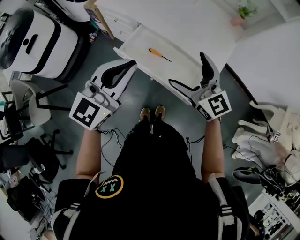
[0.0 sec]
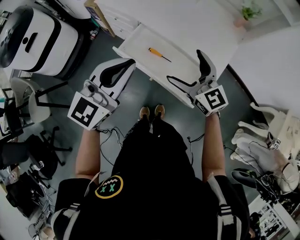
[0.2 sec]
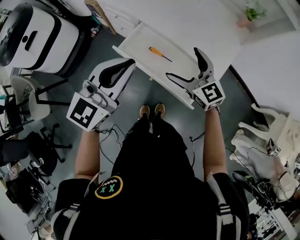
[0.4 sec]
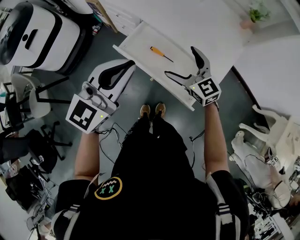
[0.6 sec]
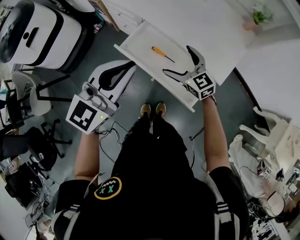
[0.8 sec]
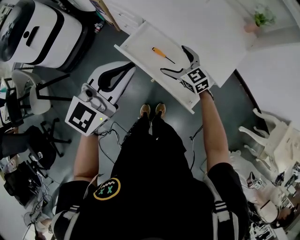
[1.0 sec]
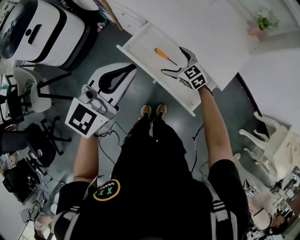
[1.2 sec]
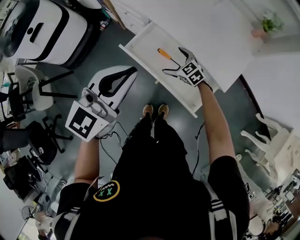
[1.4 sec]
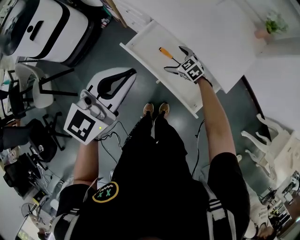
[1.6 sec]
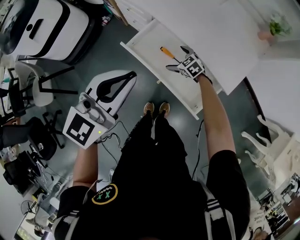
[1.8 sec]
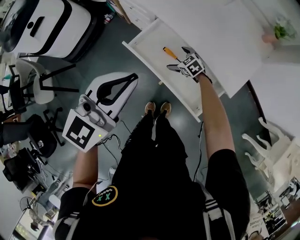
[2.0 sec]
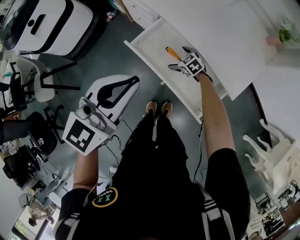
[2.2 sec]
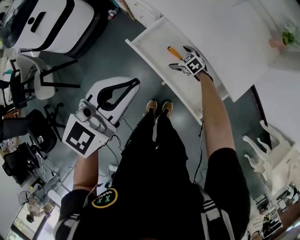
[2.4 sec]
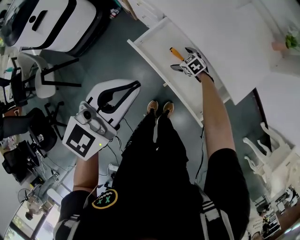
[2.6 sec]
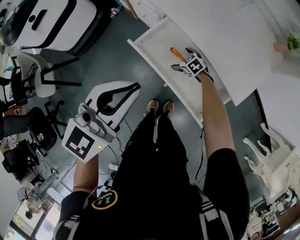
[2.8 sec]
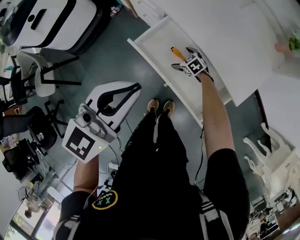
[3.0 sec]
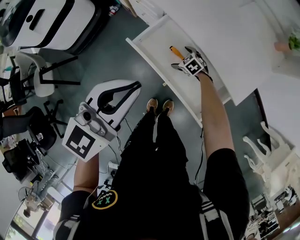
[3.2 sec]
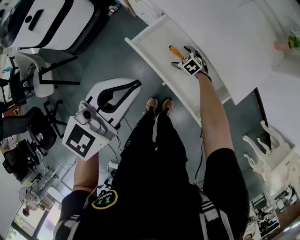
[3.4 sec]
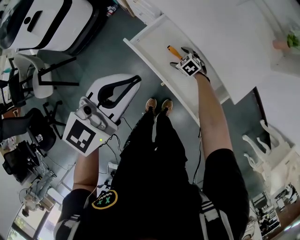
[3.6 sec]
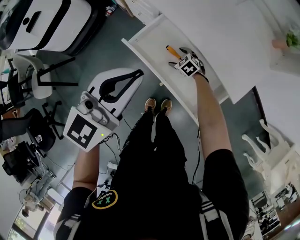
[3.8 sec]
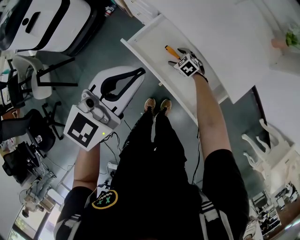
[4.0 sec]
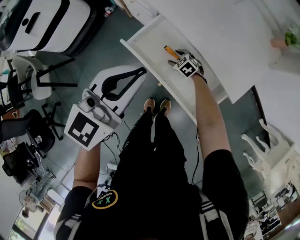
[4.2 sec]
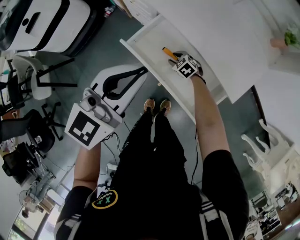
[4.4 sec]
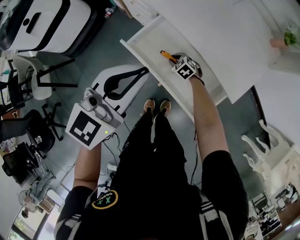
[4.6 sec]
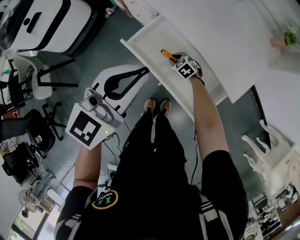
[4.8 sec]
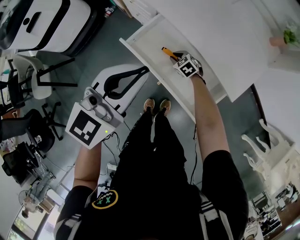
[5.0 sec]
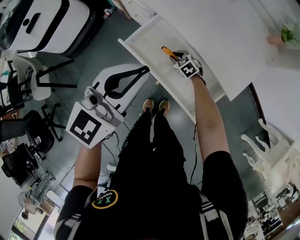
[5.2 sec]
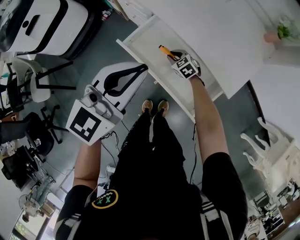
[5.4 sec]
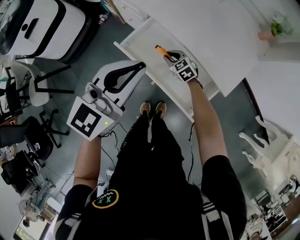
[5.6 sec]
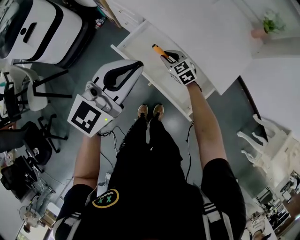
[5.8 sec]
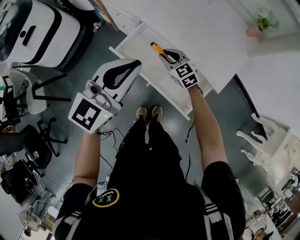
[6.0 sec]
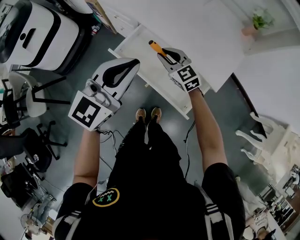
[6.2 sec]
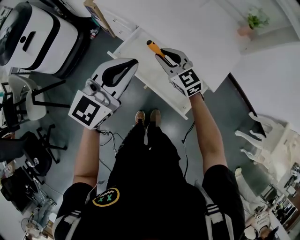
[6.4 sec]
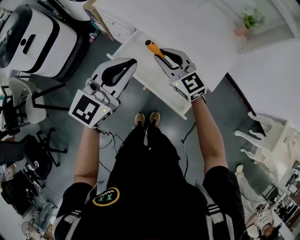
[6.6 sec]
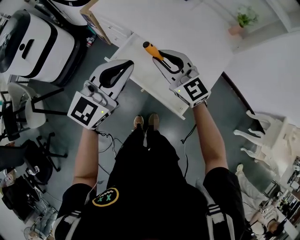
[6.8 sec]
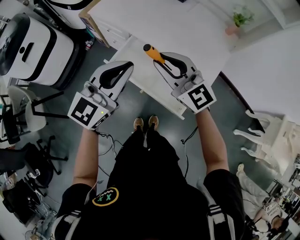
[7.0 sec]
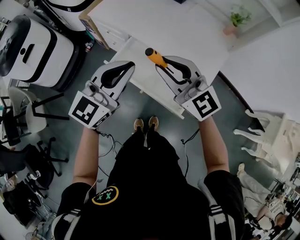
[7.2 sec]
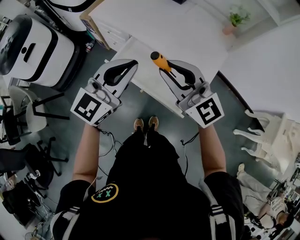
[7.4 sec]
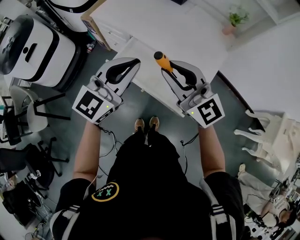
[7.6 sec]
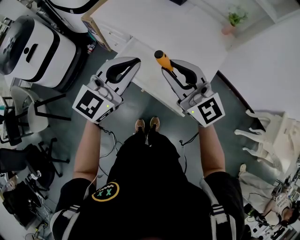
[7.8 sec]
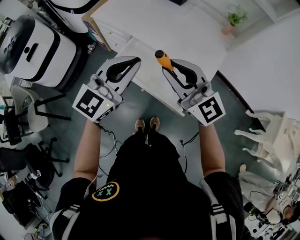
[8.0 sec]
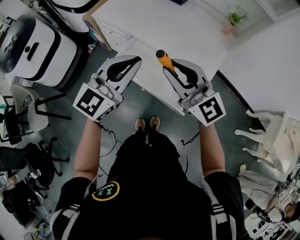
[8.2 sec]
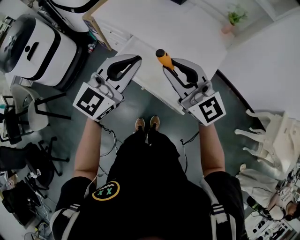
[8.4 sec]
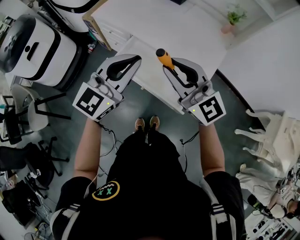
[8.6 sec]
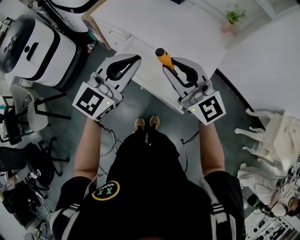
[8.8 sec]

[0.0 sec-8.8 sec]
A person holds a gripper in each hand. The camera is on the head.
0.0 sec to 1.4 sec: The left gripper shifts by about 5 cm. The right gripper moves downward and forward, some 35 cm, and tips its fingers downward by some 30 degrees.
1.4 sec to 3.0 sec: The right gripper heads downward, covering approximately 15 cm.
3.0 sec to 4.4 sec: The right gripper closes.
4.4 sec to 5.8 sec: The right gripper moves upward, about 15 cm, and rotates roughly 20 degrees.
5.8 sec to 7.4 sec: The right gripper heads upward, covering about 40 cm, and points its fingers some 40 degrees further upward. Meanwhile the left gripper moves upward, some 5 cm.
7.4 sec to 8.8 sec: The grippers stay close to where they were, moving slightly.

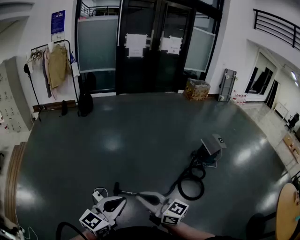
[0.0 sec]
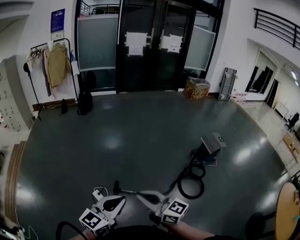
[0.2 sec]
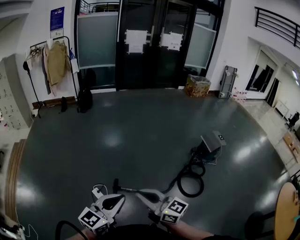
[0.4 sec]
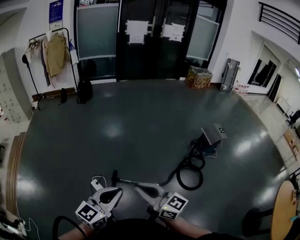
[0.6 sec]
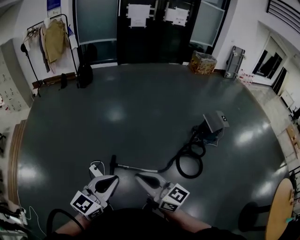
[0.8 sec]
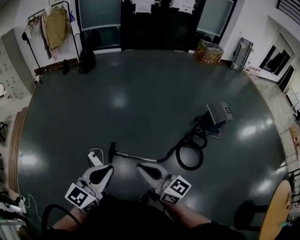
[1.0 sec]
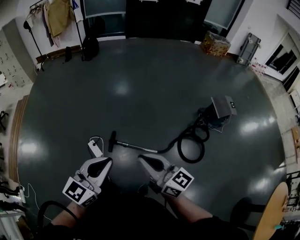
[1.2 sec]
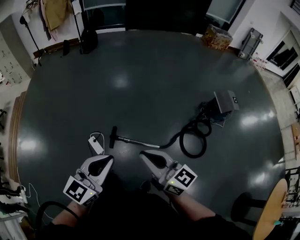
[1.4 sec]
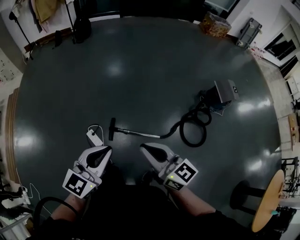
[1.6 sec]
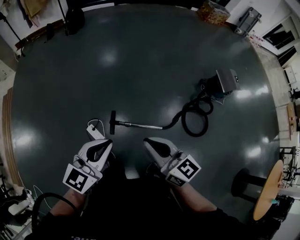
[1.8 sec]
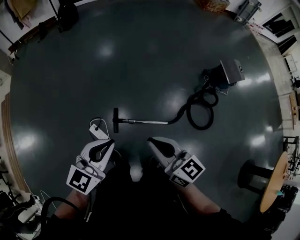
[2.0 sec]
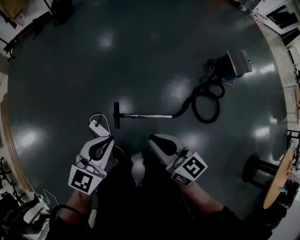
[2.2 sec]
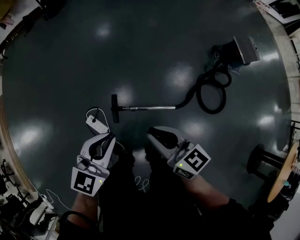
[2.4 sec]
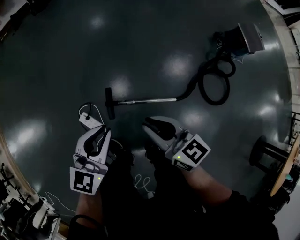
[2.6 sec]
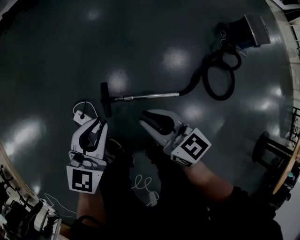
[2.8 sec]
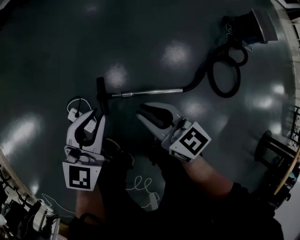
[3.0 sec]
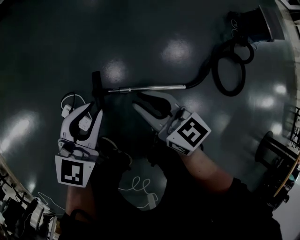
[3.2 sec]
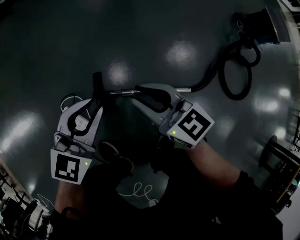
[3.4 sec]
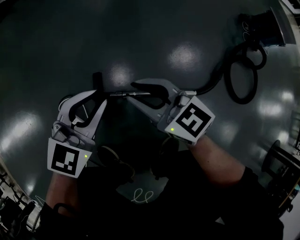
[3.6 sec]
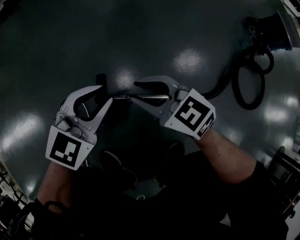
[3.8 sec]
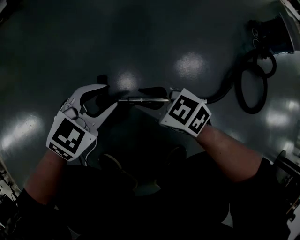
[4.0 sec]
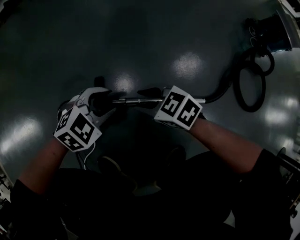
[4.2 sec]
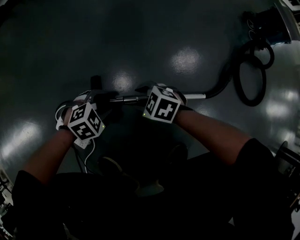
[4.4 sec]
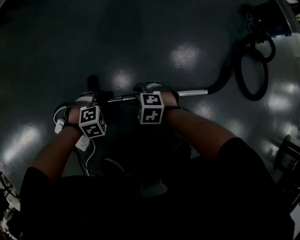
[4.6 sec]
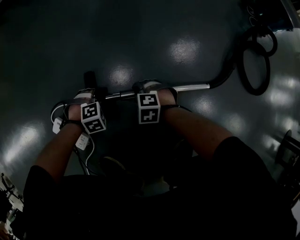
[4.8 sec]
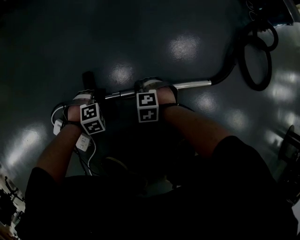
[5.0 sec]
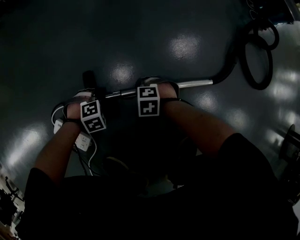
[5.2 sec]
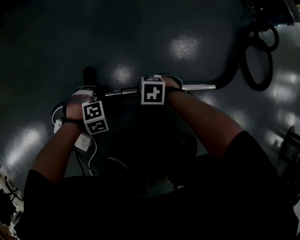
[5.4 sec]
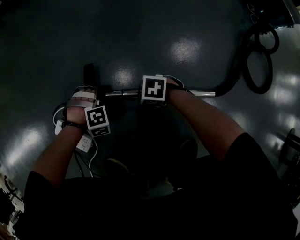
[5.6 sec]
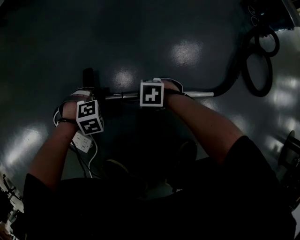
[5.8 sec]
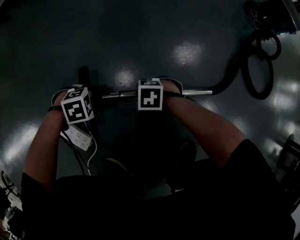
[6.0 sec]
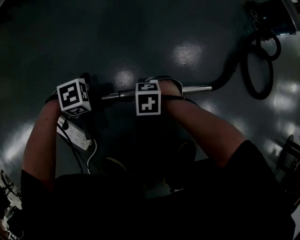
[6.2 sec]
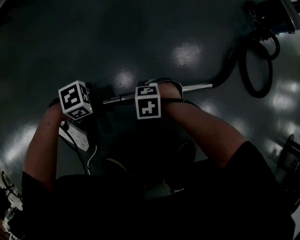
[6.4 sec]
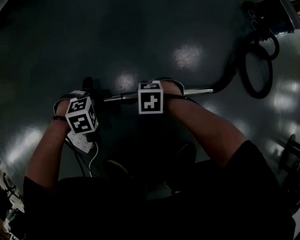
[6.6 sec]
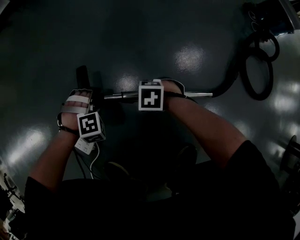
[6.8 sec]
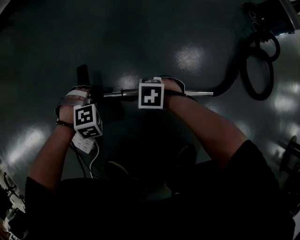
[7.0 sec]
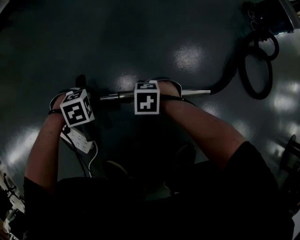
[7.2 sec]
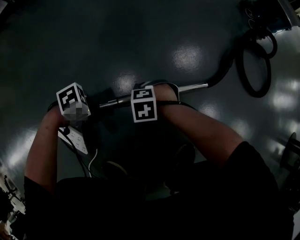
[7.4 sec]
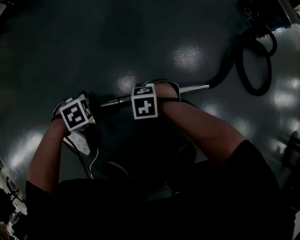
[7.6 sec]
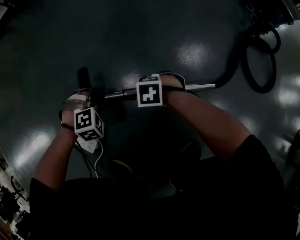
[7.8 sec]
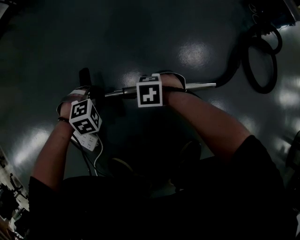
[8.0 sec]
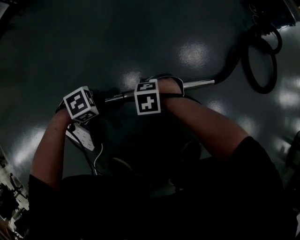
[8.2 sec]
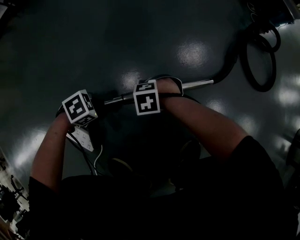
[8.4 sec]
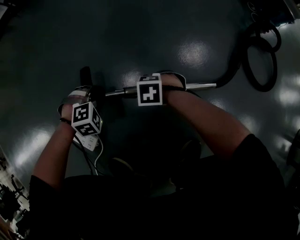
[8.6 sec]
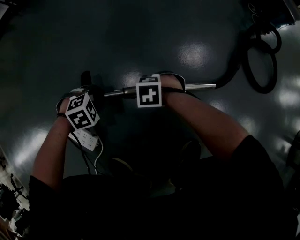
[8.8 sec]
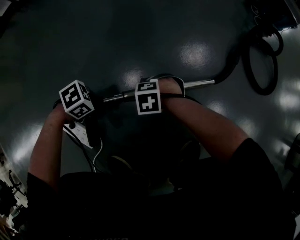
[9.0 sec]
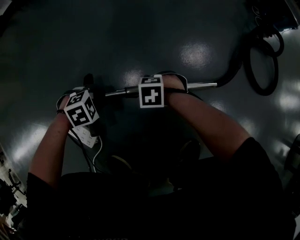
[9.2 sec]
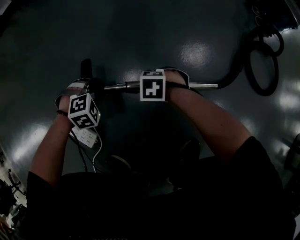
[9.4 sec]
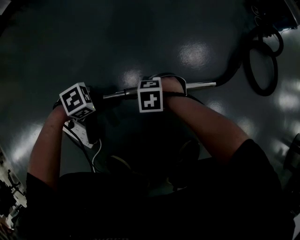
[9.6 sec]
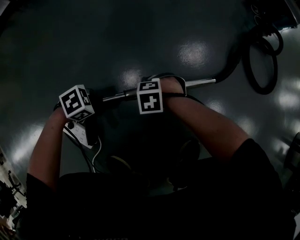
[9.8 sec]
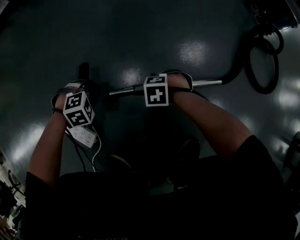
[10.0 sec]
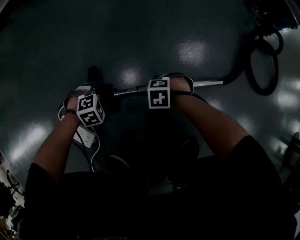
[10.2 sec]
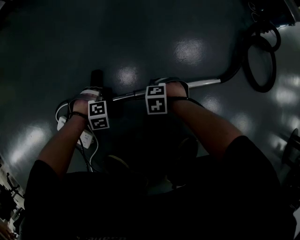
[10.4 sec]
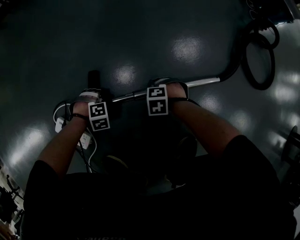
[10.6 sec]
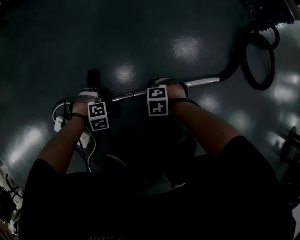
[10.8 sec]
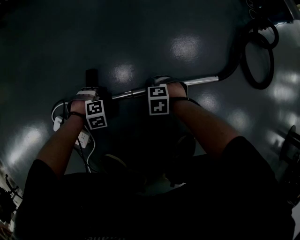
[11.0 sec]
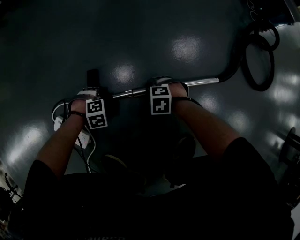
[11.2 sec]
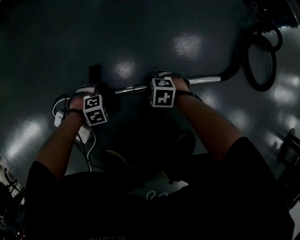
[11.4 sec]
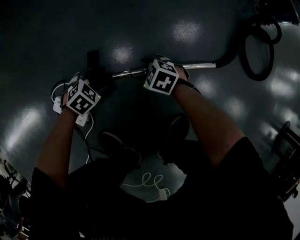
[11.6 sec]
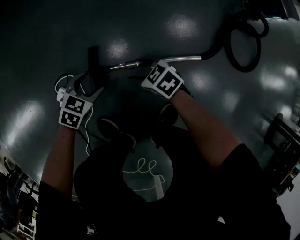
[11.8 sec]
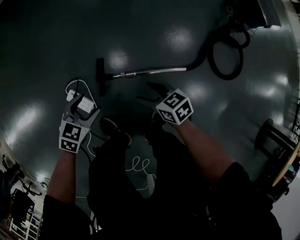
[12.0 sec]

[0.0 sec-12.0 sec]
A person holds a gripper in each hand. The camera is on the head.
0.0 sec to 1.6 sec: The left gripper is displaced forward by roughly 10 cm. The right gripper is displaced forward and downward by approximately 10 cm.
1.6 sec to 3.0 sec: The left gripper moves downward and forward, about 50 cm; the right gripper is displaced downward by some 50 cm.
3.0 sec to 4.4 sec: The grippers both shift downward by about 40 cm. The right gripper tilts its fingers roughly 40 degrees downward, and opens its fingers; the left gripper angles its fingers downward, by some 50 degrees, and opens.
4.4 sec to 6.0 sec: The two grippers go approximately 5 cm downward. The left gripper turns by some 20 degrees.
9.0 sec to 10.4 sec: The left gripper moves downward, approximately 15 cm, and rotates roughly 50 degrees; the right gripper heads downward, covering some 10 cm.
10.4 sec to 12.0 sec: Both grippers travel together upward, some 40 cm. The right gripper angles its fingers upward, by some 40 degrees, and opens its fingers. Meanwhile the left gripper twists some 60 degrees counterclockwise, seen from behind, and opens up.

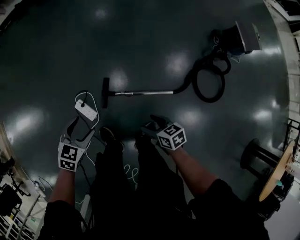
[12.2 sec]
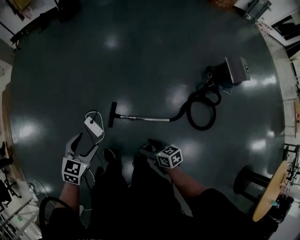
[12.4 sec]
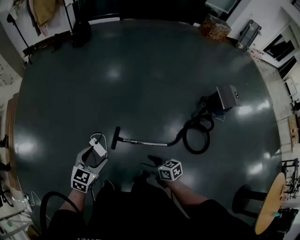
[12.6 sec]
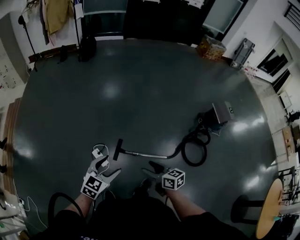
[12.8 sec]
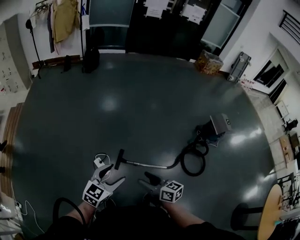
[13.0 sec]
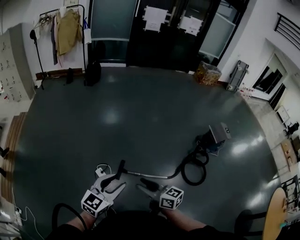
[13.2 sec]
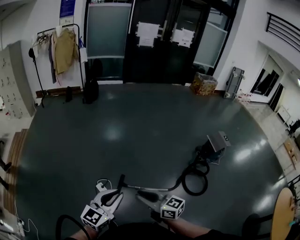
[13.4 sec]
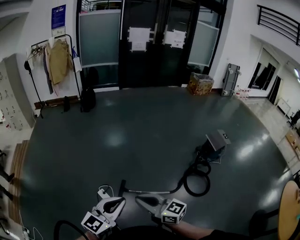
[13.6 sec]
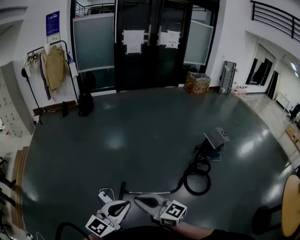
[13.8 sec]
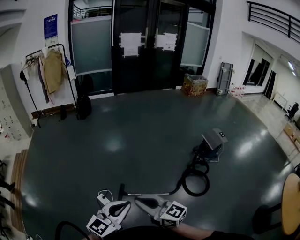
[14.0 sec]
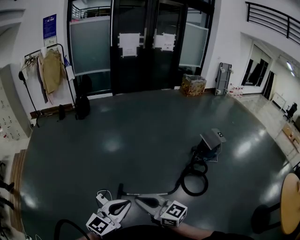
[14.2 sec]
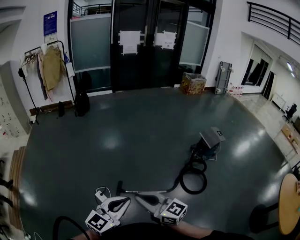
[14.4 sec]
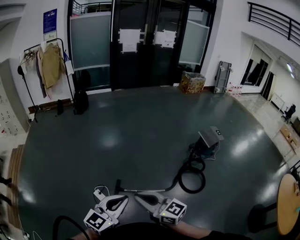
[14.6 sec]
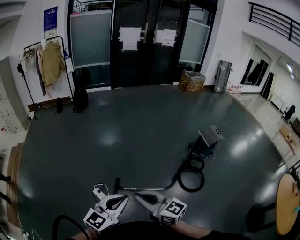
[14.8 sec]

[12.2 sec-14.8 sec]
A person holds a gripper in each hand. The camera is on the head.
12.2 sec to 13.4 sec: The left gripper travels upward and backward by roughly 50 cm, tilts its fingers some 50 degrees upward, and closes, while the right gripper moves upward, some 50 cm, tilts its fingers some 40 degrees upward, and closes its fingers.
13.4 sec to 14.8 sec: The right gripper heads to the right and upward, covering roughly 10 cm; the left gripper goes some 10 cm to the right.
